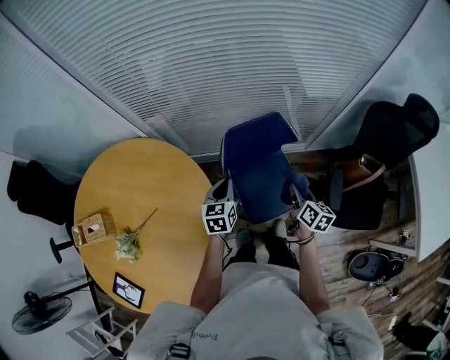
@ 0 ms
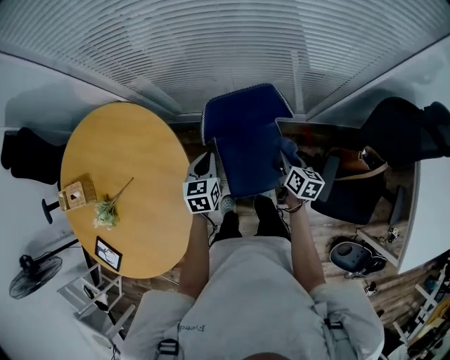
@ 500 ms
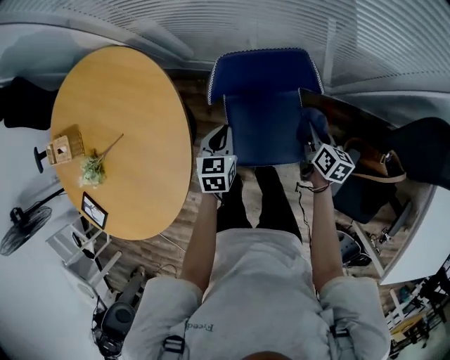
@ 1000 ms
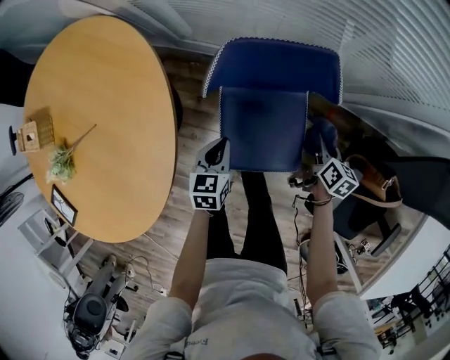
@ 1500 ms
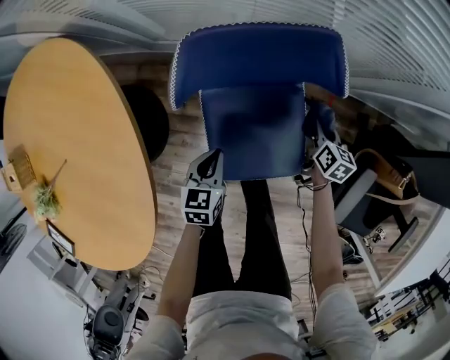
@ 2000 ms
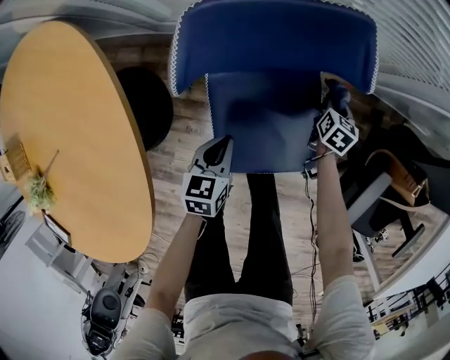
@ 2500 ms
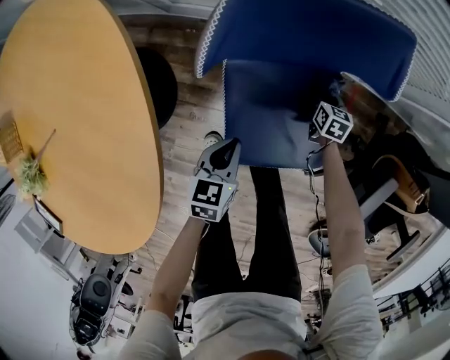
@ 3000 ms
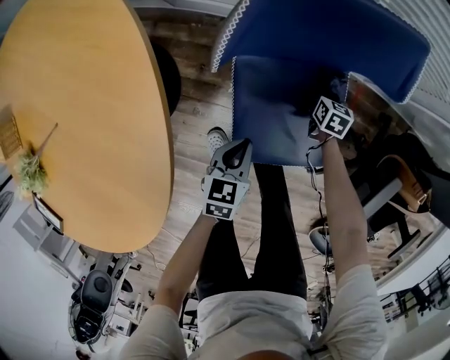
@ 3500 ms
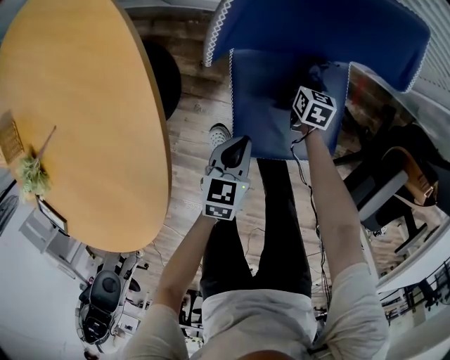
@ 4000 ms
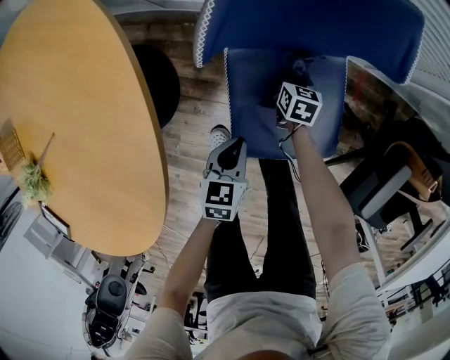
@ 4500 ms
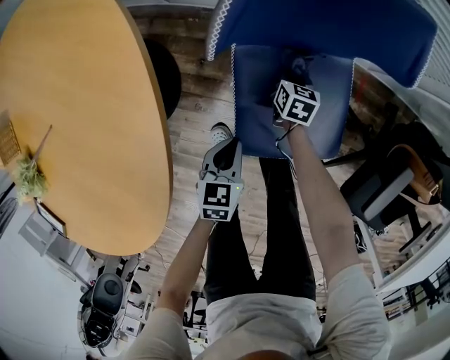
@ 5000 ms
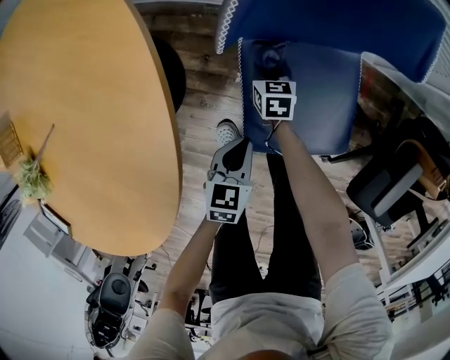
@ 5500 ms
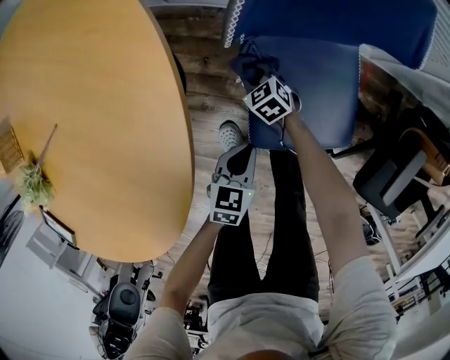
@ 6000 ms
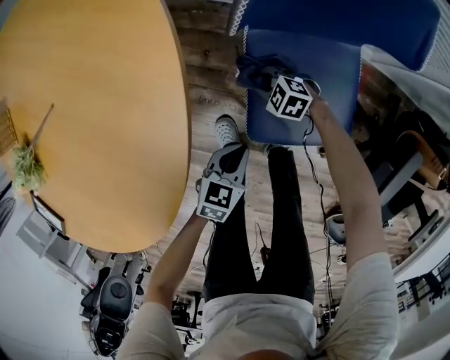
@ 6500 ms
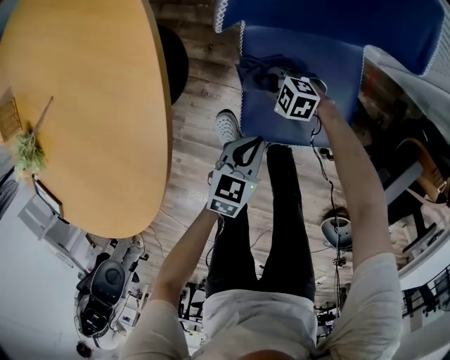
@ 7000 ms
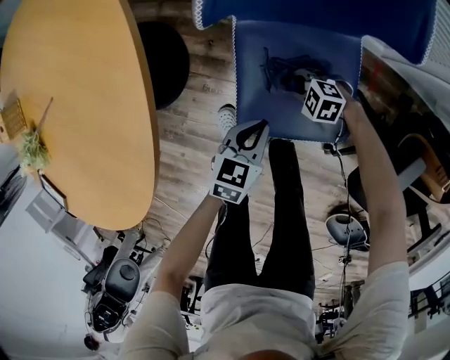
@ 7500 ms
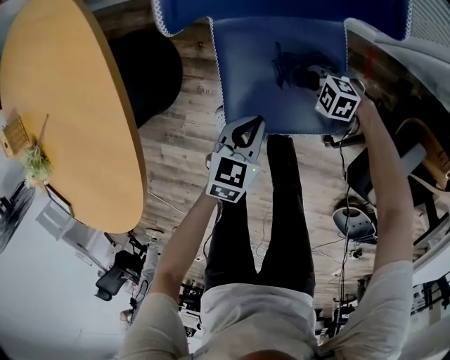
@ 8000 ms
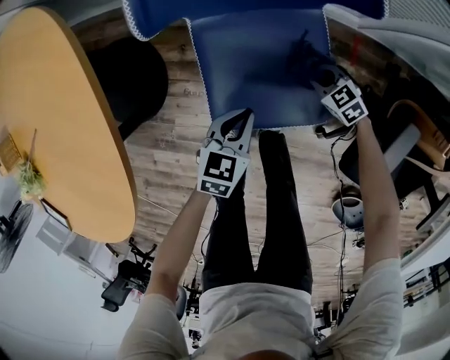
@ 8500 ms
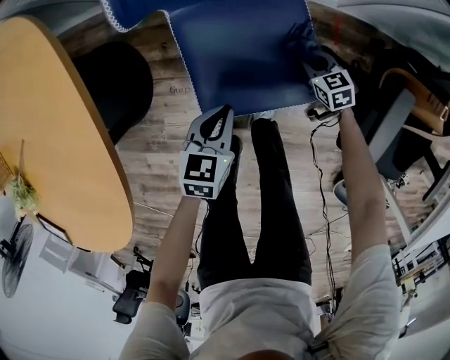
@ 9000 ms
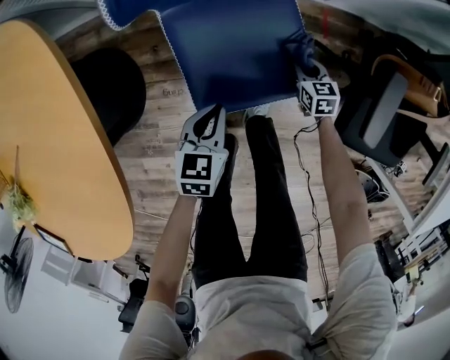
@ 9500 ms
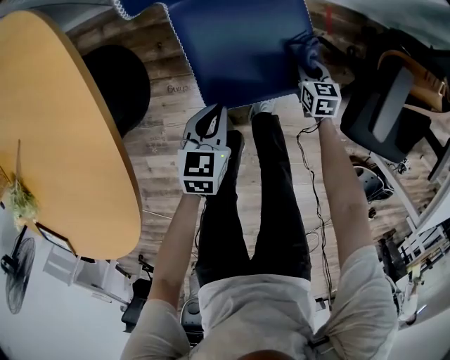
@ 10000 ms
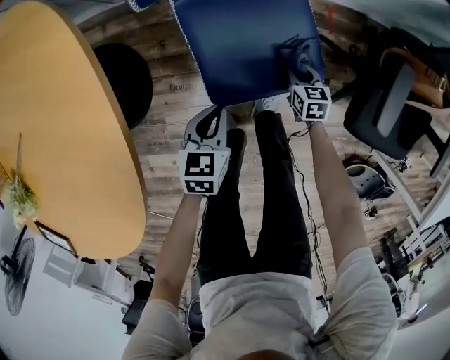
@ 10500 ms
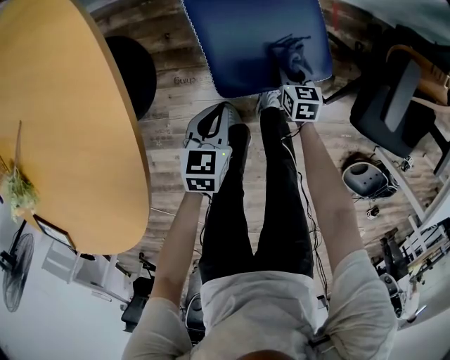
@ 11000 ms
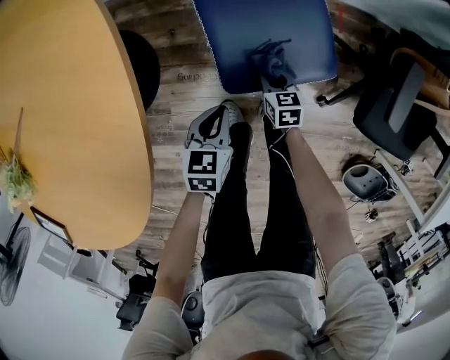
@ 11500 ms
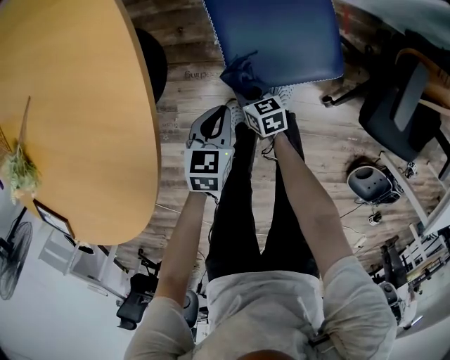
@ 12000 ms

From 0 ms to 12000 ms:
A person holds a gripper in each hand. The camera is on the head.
From 0 ms to 2000 ms: The left gripper shifts approximately 30 cm downward. The right gripper heads downward and forward, covering about 40 cm, and turns by some 20 degrees.
From 2000 ms to 4000 ms: The right gripper shifts roughly 20 cm to the left and downward, while the left gripper moves backward, some 5 cm.
From 4000 ms to 6000 ms: The right gripper shifts some 20 cm to the left, and twists roughly 40 degrees counterclockwise, seen from behind. The left gripper heads backward, covering approximately 5 cm.
From 6000 ms to 8000 ms: The right gripper ends up some 25 cm from where it was, and rotates about 40 degrees. Meanwhile the left gripper ends up about 10 cm from where it was.
From 8000 ms to 10000 ms: The right gripper shifts by approximately 10 cm, and turns by roughly 90 degrees, while the left gripper shifts by some 5 cm.
From 10000 ms to 12000 ms: The left gripper heads backward and to the left, covering about 10 cm; the right gripper moves to the left and backward, roughly 30 cm, and changes its angle by some 30 degrees.

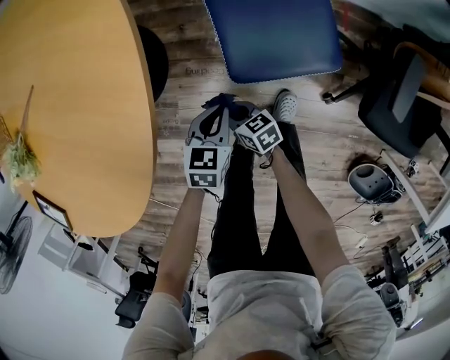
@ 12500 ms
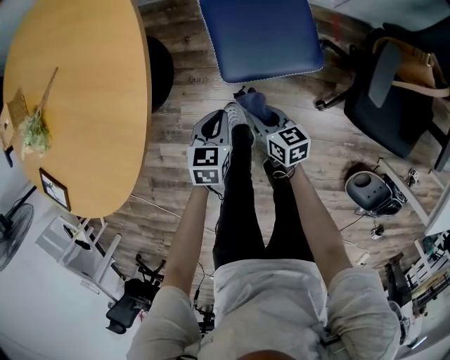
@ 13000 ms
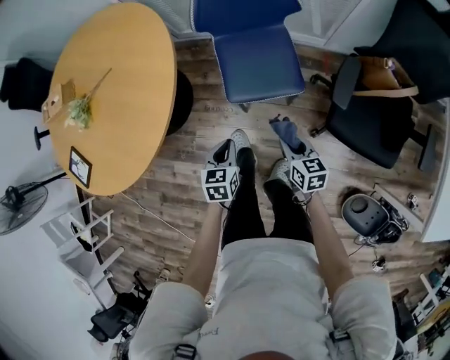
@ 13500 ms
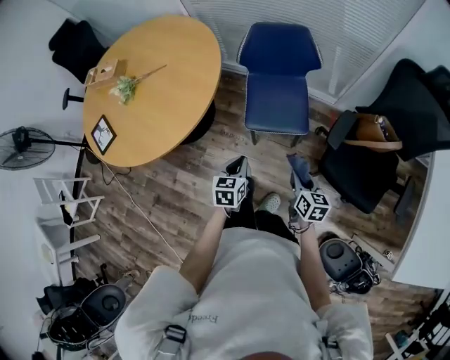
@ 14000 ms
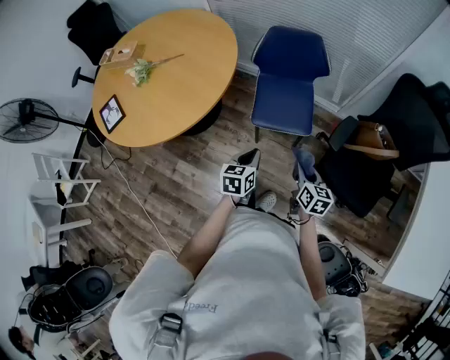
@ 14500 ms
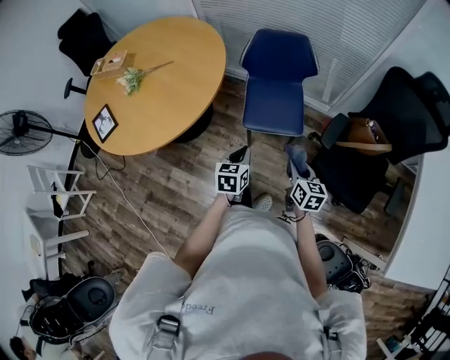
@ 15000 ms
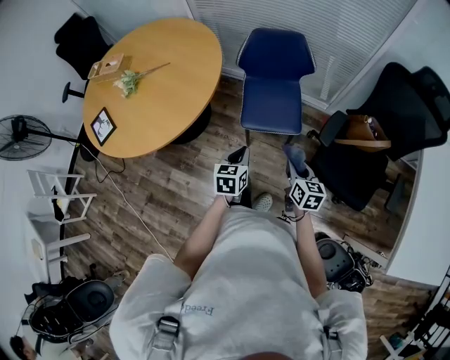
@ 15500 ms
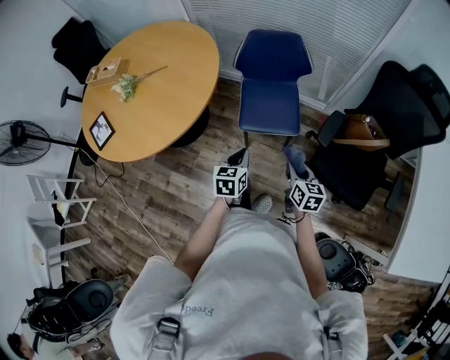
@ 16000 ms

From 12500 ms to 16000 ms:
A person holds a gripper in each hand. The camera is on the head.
From 12500 ms to 14500 ms: The right gripper is displaced upward, to the right and backward by some 50 cm, and rotates approximately 30 degrees, while the left gripper travels upward and backward by approximately 35 cm, and swivels about 30 degrees.
From 14500 ms to 16000 ms: The grippers stay close to where they were, moving slightly.

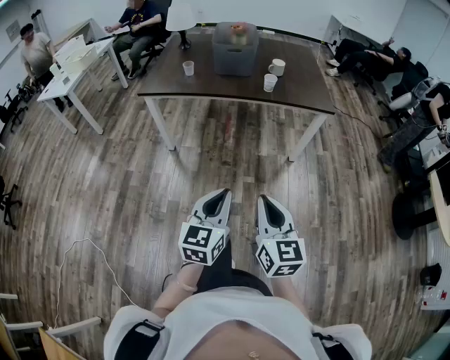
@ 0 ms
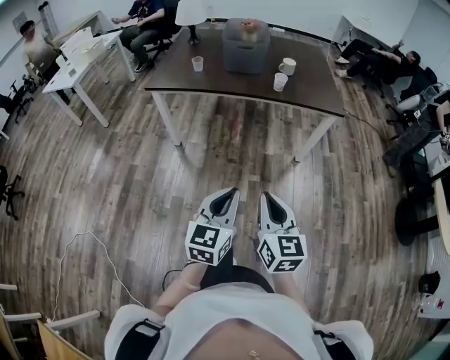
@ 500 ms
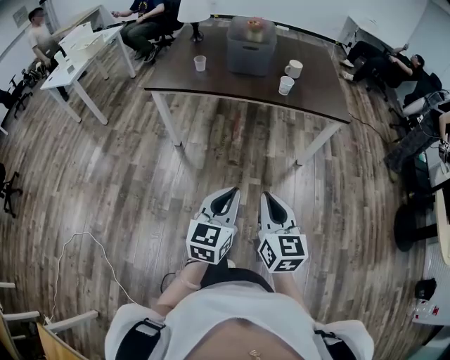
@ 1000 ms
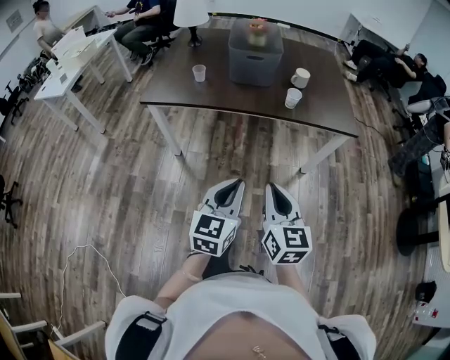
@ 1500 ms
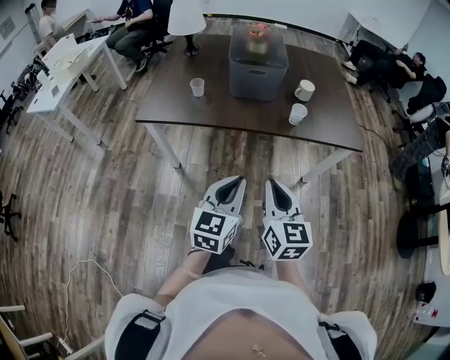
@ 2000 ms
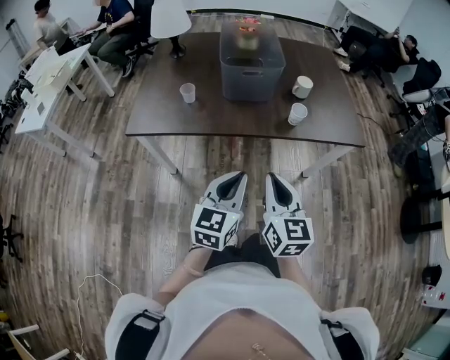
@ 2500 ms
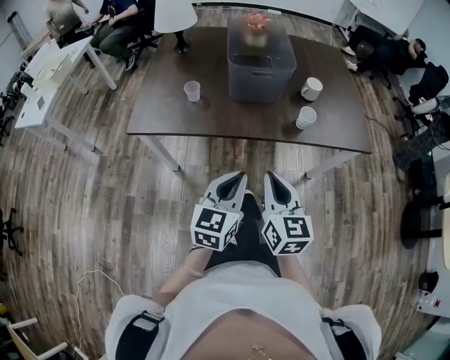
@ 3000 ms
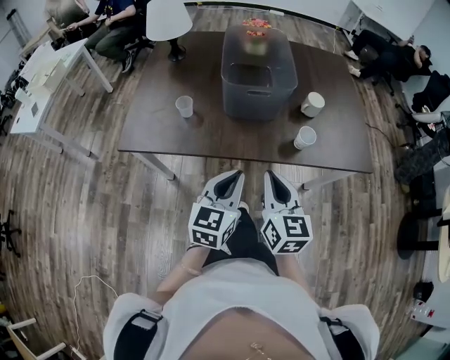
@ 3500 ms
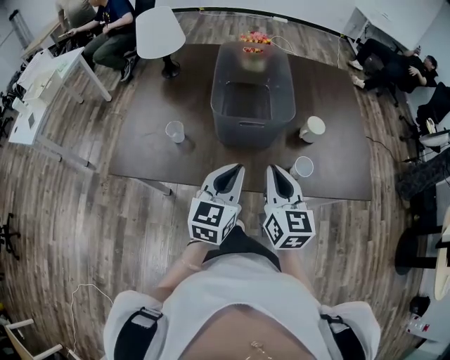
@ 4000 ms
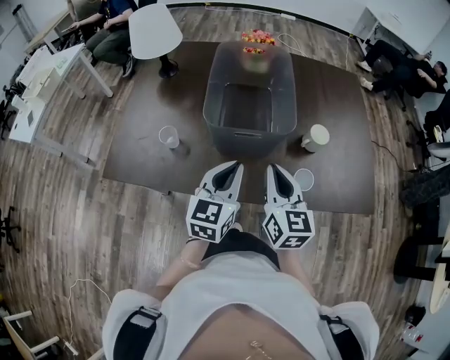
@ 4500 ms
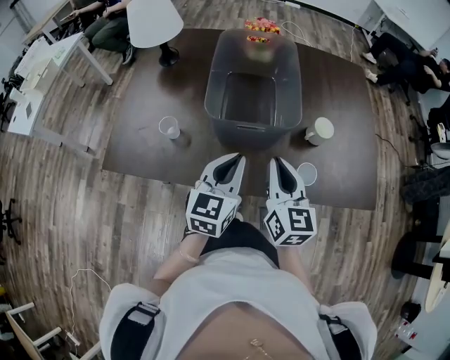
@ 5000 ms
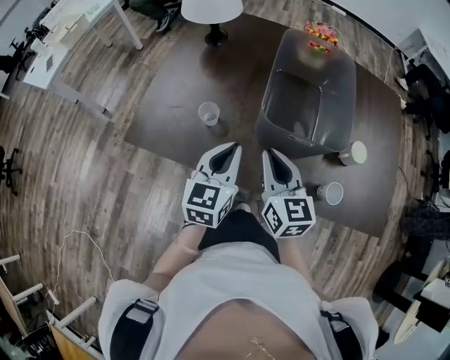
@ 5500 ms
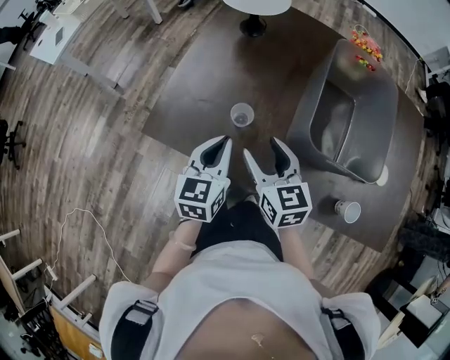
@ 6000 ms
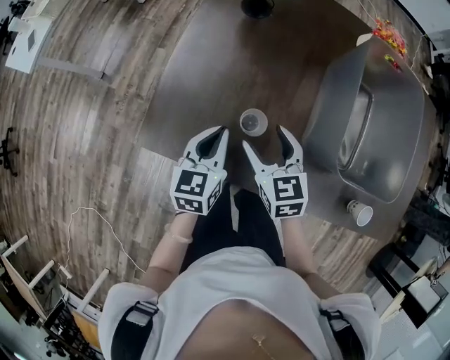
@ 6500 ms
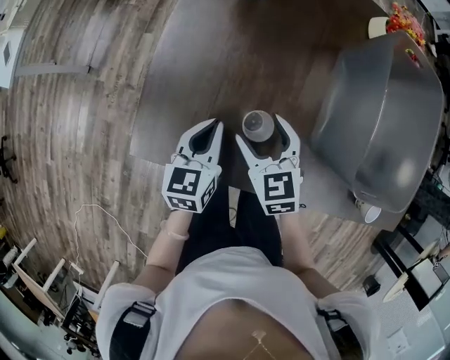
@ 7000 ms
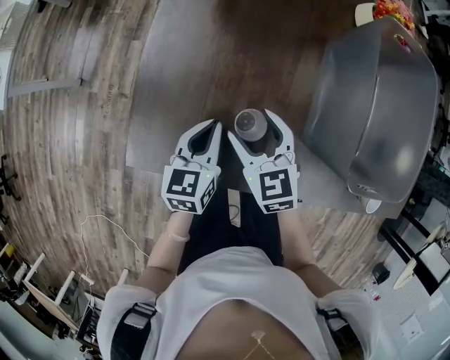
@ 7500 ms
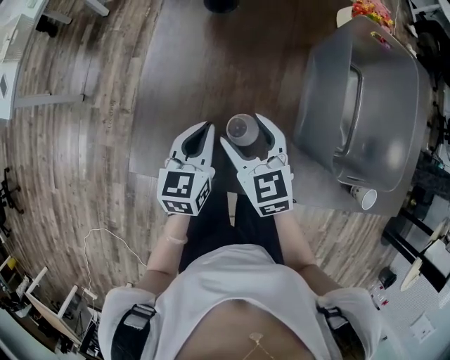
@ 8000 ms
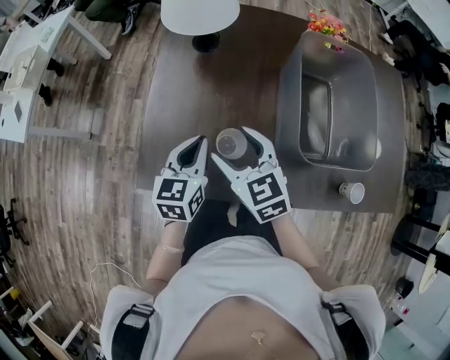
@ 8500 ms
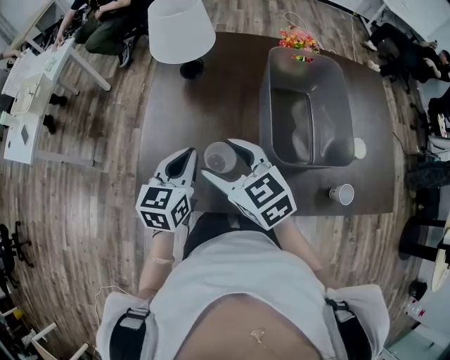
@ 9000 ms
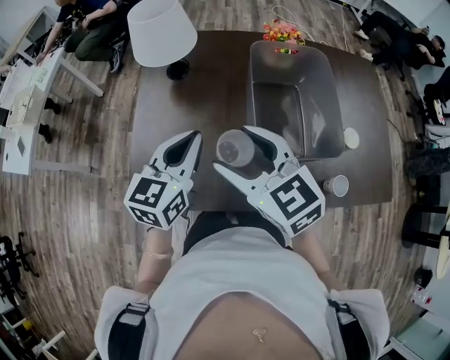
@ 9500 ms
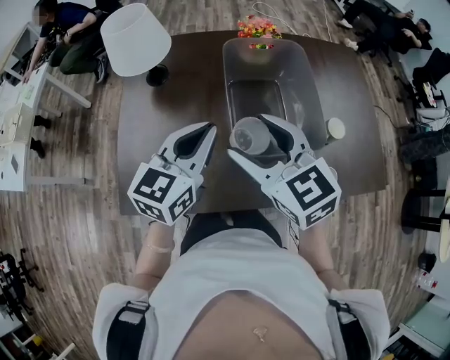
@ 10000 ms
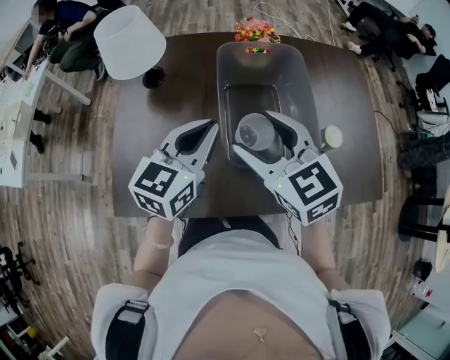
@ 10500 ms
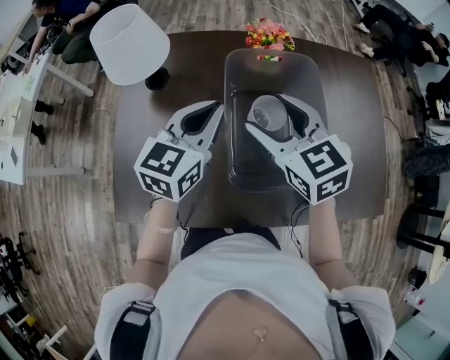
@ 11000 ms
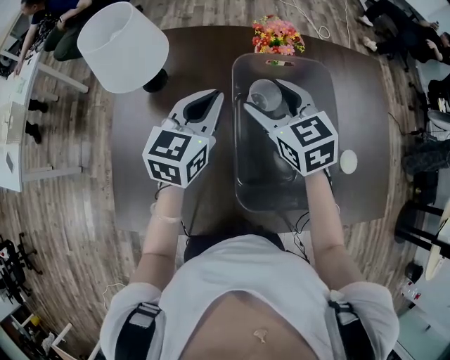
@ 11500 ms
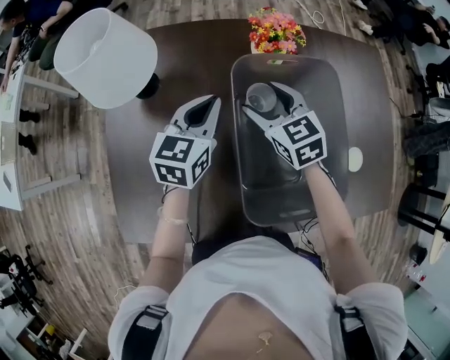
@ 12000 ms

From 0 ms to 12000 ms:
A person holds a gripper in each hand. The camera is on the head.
From 0 ms to 2000 ms: The grippers both shift forward by approximately 30 cm.
From 2000 ms to 4000 ms: The two grippers go some 30 cm forward.
From 4000 ms to 6000 ms: The left gripper changes place by some 25 cm, and turns by some 30 degrees; the right gripper changes place by about 30 cm, changes its angle by about 40 degrees, and opens.
From 6000 ms to 8000 ms: The left gripper shifts approximately 15 cm forward and downward, while the right gripper is displaced forward, downward and to the left by approximately 15 cm.
From 8000 ms to 10000 ms: Both grippers travel together upward and to the right, some 30 cm. The left gripper changes its angle by some 30 degrees.
From 10000 ms to 12000 ms: Both grippers travel together forward and downward, roughly 25 cm.
